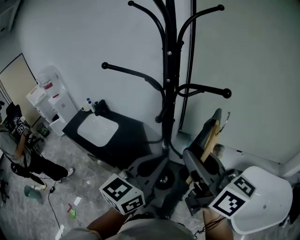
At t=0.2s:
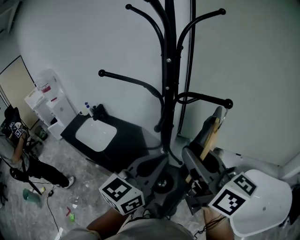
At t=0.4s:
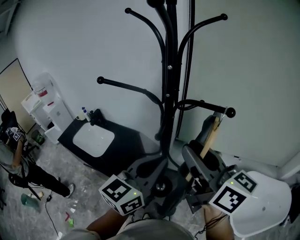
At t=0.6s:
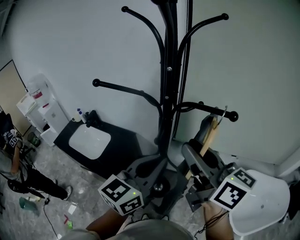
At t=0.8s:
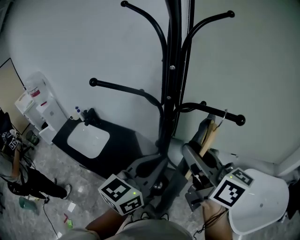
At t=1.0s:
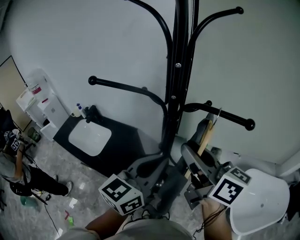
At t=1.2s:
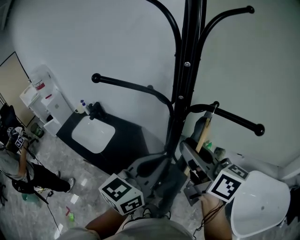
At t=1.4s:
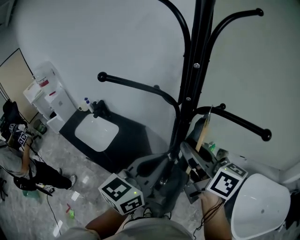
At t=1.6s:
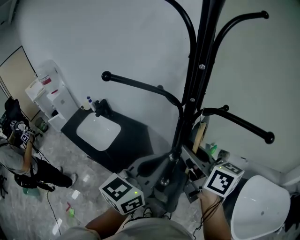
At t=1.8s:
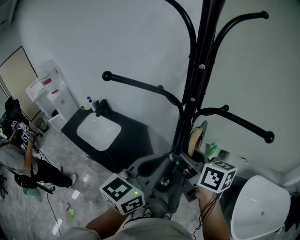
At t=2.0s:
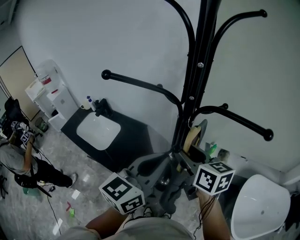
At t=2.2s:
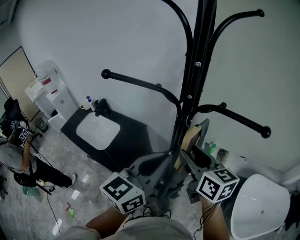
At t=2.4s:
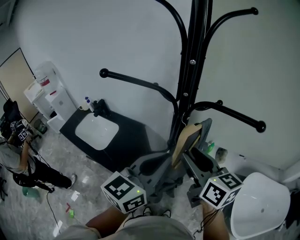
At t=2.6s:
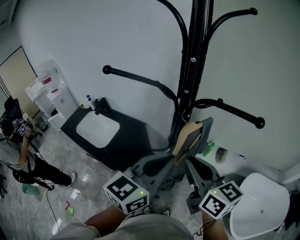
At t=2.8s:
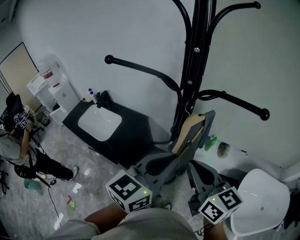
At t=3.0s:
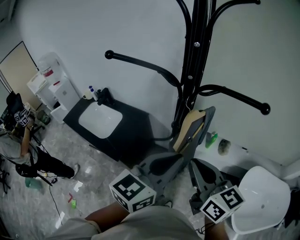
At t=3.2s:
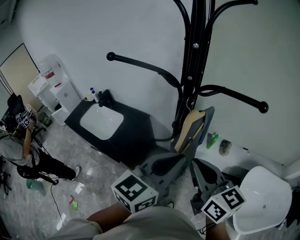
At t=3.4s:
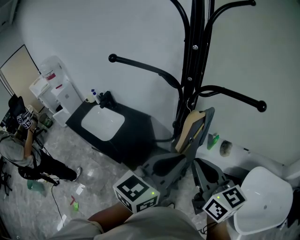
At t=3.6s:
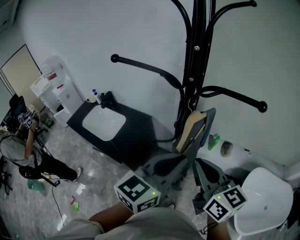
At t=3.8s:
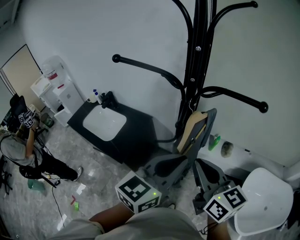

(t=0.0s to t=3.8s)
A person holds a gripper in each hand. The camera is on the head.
t=0.0s - t=1.2s: The two grippers go roughly 10 cm forward.
t=1.2s - t=2.6s: The right gripper shifts some 10 cm downward and backward.
t=2.6s - t=3.8s: The grippers make only small movements.

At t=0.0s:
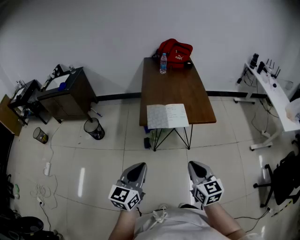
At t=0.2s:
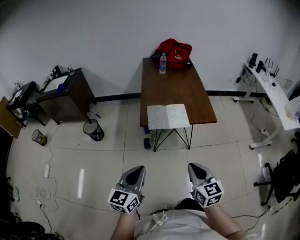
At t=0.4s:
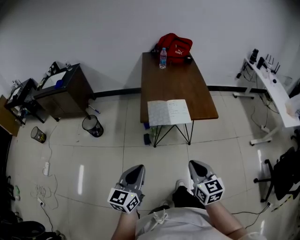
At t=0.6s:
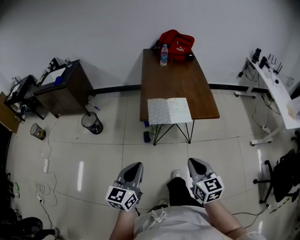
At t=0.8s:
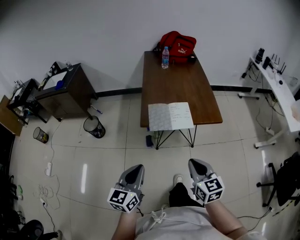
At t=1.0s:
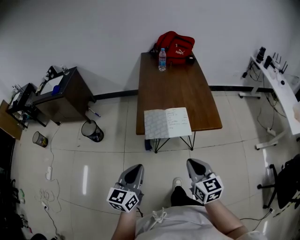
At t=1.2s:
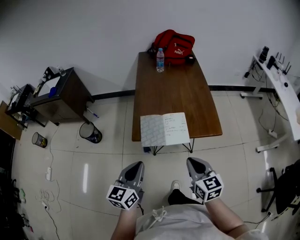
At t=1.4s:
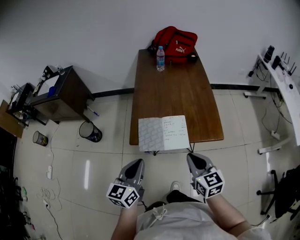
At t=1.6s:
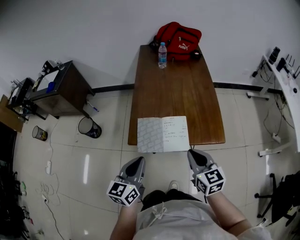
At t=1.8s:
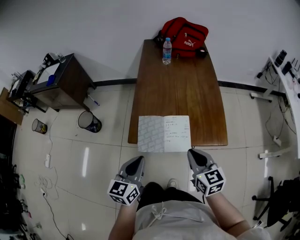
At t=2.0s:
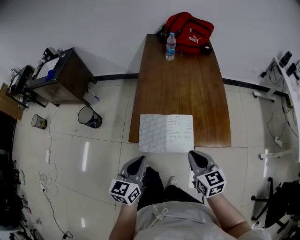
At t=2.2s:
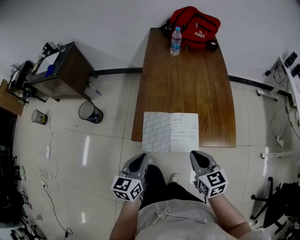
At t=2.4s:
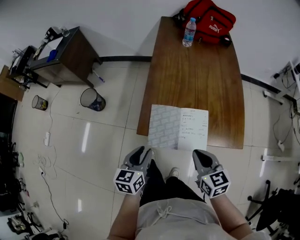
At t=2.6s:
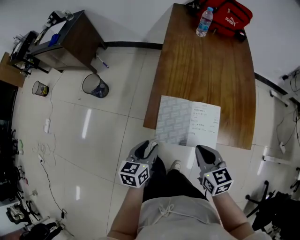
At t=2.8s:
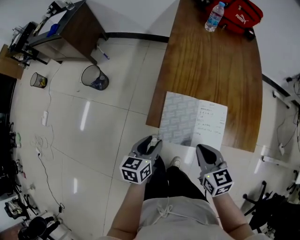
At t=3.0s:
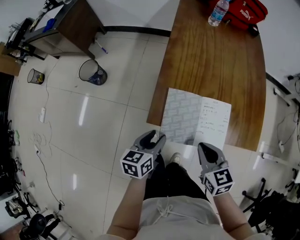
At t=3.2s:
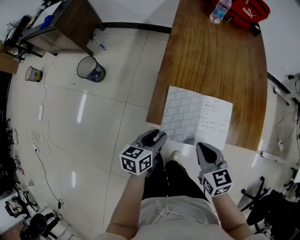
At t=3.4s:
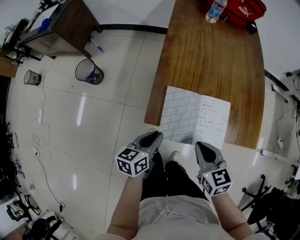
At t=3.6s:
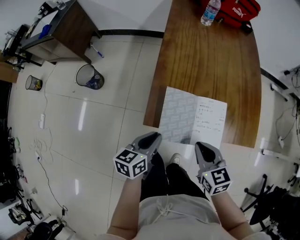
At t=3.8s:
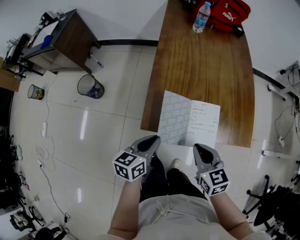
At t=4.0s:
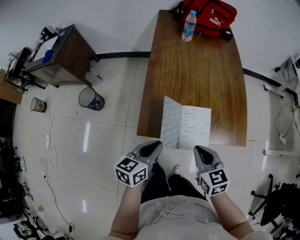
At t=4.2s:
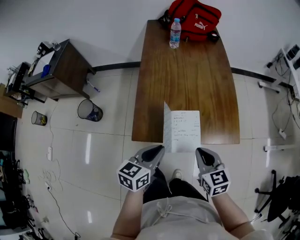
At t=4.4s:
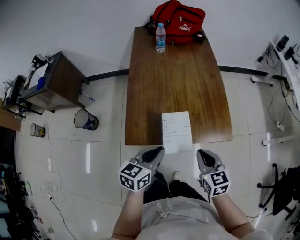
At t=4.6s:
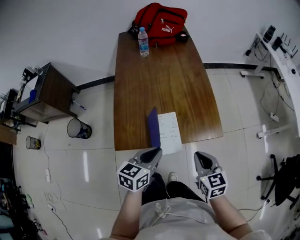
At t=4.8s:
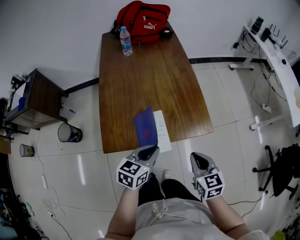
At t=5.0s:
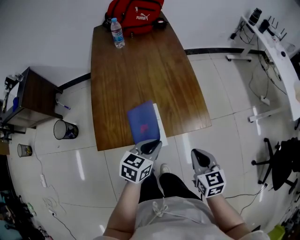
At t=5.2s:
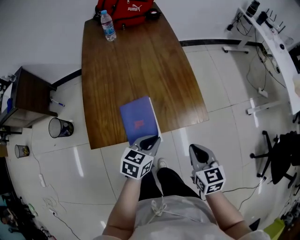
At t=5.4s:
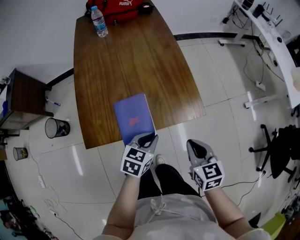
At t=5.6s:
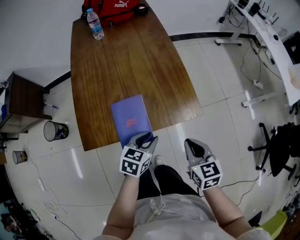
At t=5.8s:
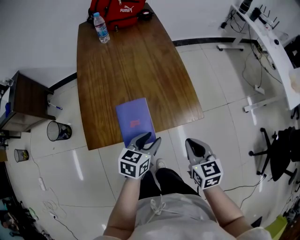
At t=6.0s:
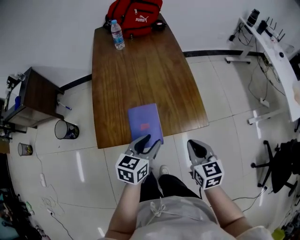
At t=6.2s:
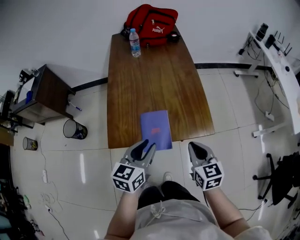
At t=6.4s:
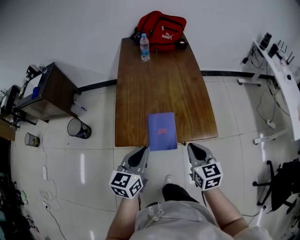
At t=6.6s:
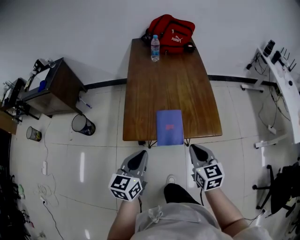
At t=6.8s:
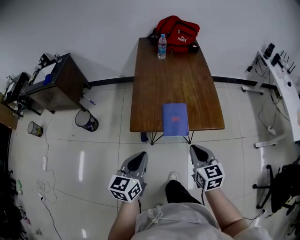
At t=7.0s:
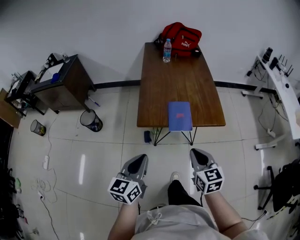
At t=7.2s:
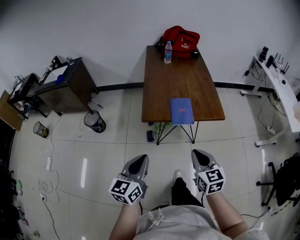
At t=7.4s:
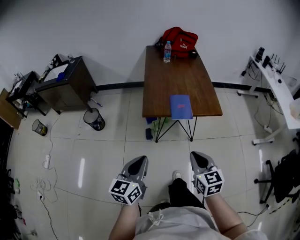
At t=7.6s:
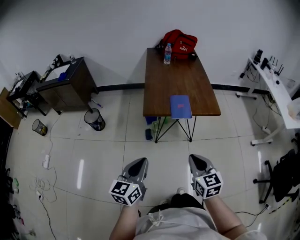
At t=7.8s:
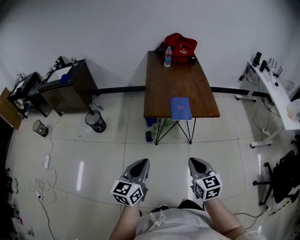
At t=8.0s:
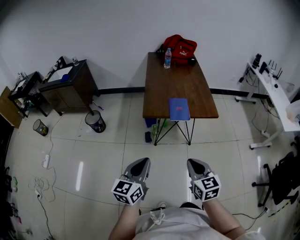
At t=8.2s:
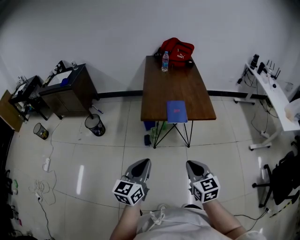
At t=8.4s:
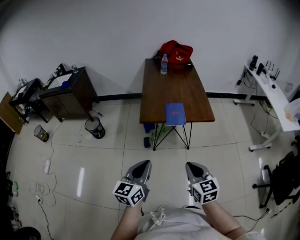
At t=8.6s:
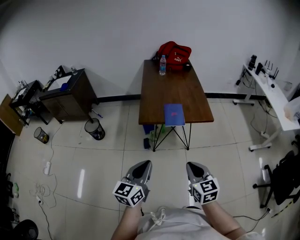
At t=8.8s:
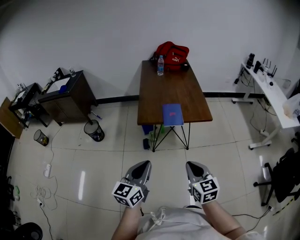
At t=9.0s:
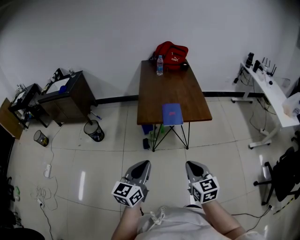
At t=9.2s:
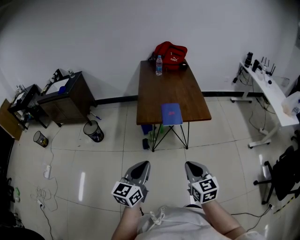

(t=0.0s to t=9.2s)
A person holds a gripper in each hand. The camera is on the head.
t=0.0s - t=1.6s: The two grippers go approximately 25 cm forward.
t=1.6s - t=3.0s: The left gripper travels downward and forward by roughly 20 cm, rotates about 30 degrees, and opens up, while the right gripper travels downward, to the left and forward by roughly 15 cm, and rotates some 20 degrees.
t=3.0s - t=4.6s: The left gripper heads to the right and upward, covering approximately 20 cm, swivels some 30 degrees, and closes, while the right gripper shifts some 15 cm to the right, and turns by roughly 20 degrees.
t=4.6s - t=6.2s: The right gripper reaches roughly 10 cm to the right, then returns. The left gripper moves approximately 10 cm downward and comes back, and opens its fingers.
t=6.2s - t=7.6s: The grippers both shift backward and to the left by approximately 40 cm. The left gripper closes its fingers.
t=7.6s - t=9.2s: The right gripper ends up some 5 cm from where it was. The left gripper is displaced to the right by approximately 5 cm.

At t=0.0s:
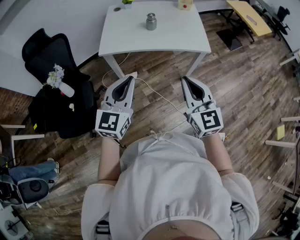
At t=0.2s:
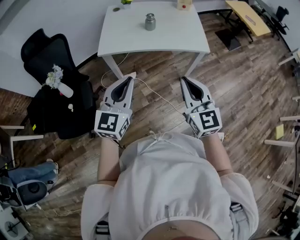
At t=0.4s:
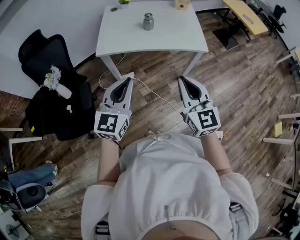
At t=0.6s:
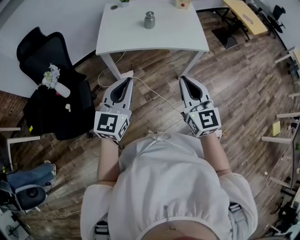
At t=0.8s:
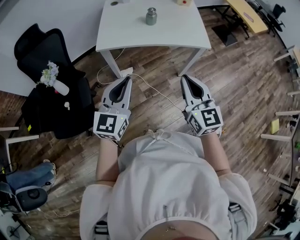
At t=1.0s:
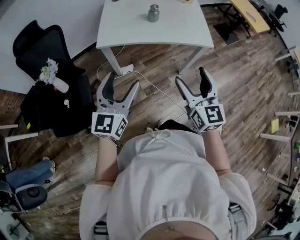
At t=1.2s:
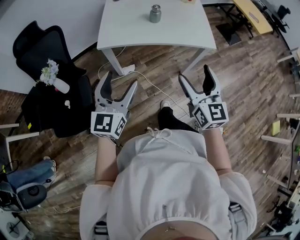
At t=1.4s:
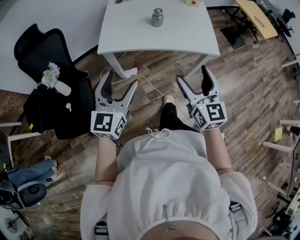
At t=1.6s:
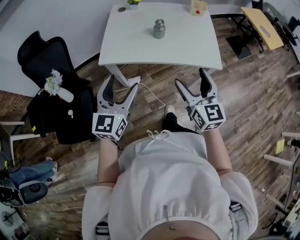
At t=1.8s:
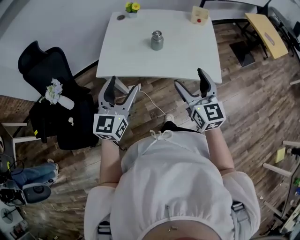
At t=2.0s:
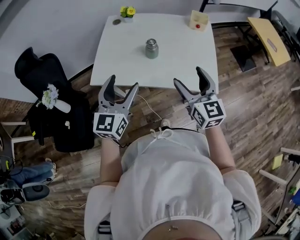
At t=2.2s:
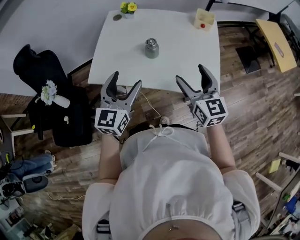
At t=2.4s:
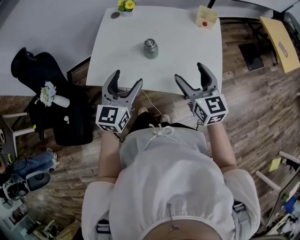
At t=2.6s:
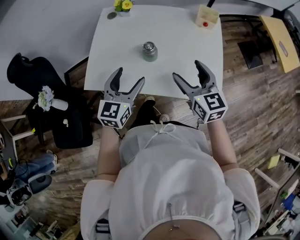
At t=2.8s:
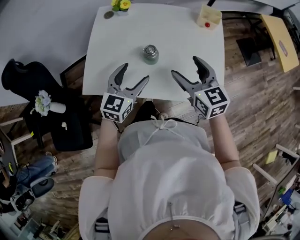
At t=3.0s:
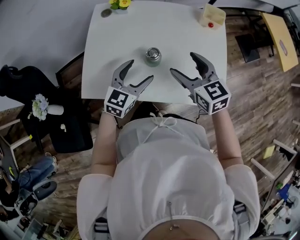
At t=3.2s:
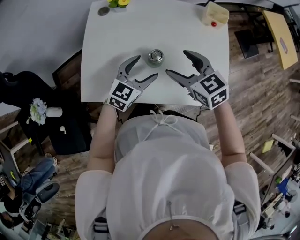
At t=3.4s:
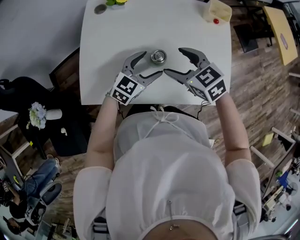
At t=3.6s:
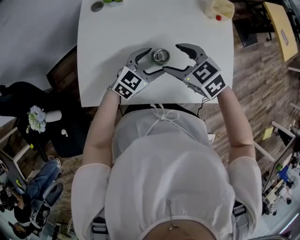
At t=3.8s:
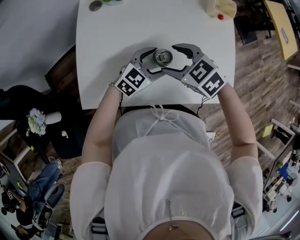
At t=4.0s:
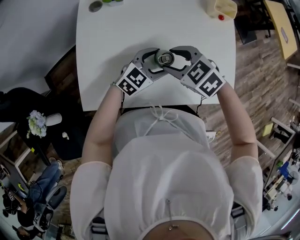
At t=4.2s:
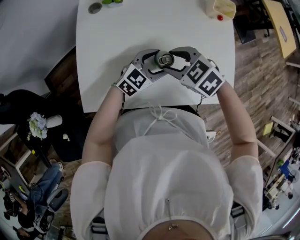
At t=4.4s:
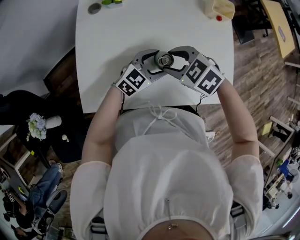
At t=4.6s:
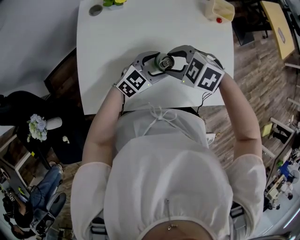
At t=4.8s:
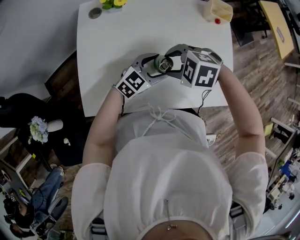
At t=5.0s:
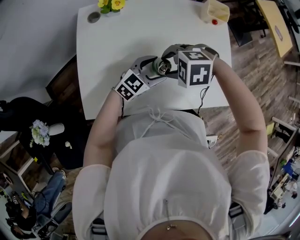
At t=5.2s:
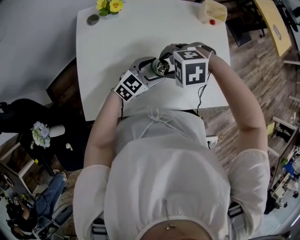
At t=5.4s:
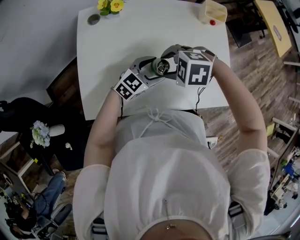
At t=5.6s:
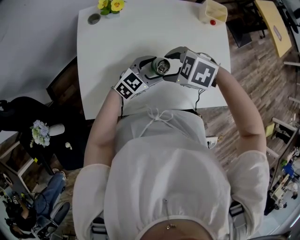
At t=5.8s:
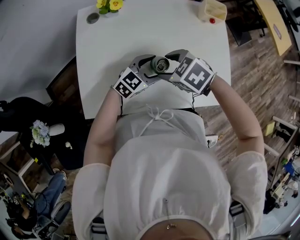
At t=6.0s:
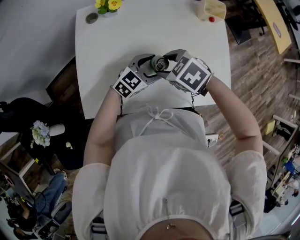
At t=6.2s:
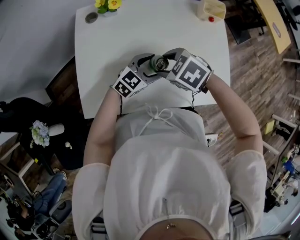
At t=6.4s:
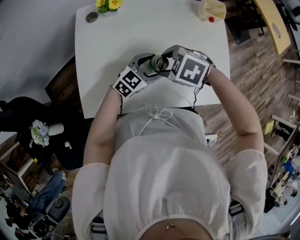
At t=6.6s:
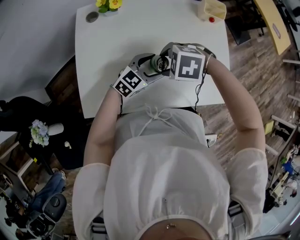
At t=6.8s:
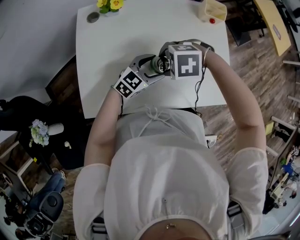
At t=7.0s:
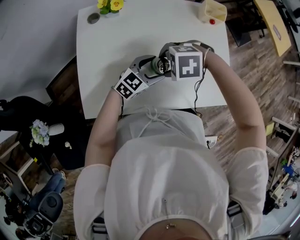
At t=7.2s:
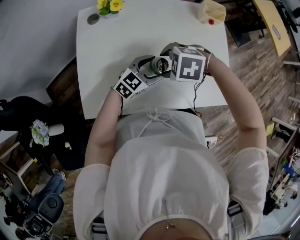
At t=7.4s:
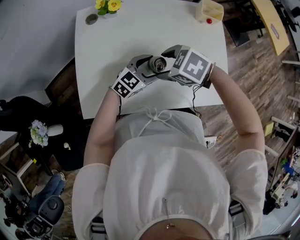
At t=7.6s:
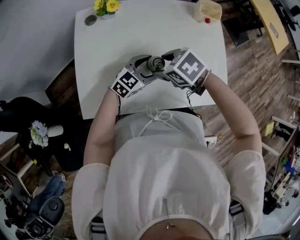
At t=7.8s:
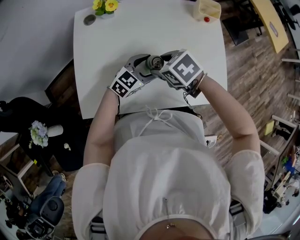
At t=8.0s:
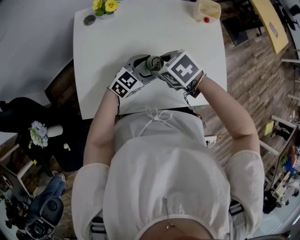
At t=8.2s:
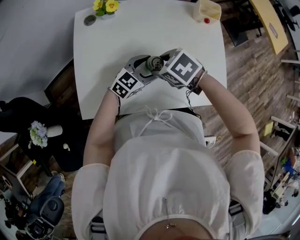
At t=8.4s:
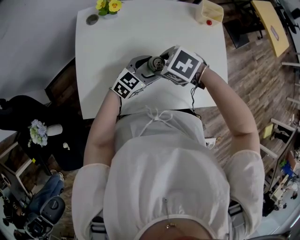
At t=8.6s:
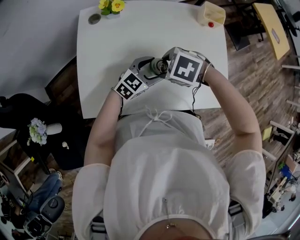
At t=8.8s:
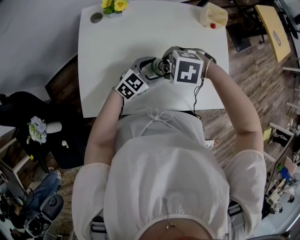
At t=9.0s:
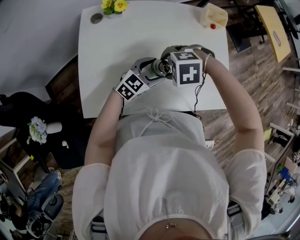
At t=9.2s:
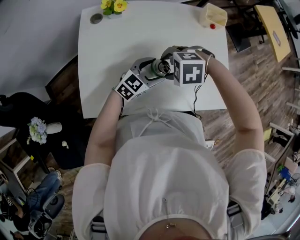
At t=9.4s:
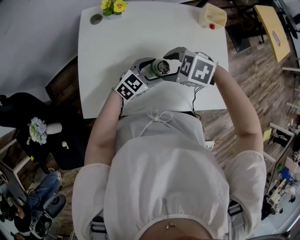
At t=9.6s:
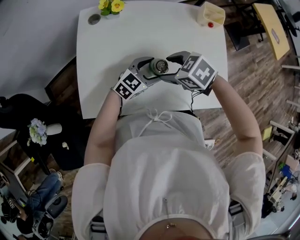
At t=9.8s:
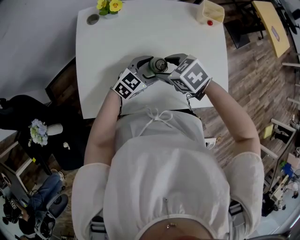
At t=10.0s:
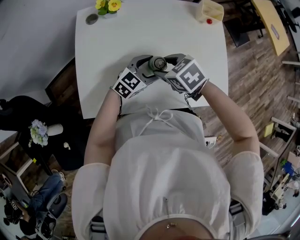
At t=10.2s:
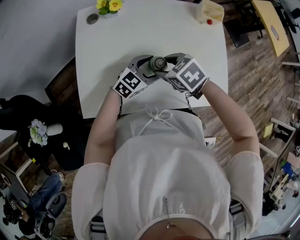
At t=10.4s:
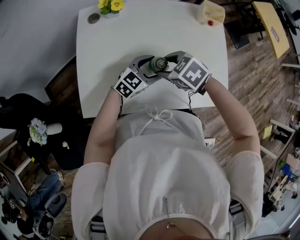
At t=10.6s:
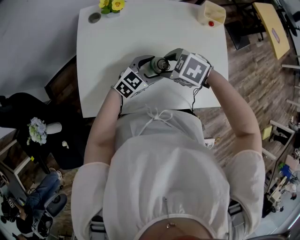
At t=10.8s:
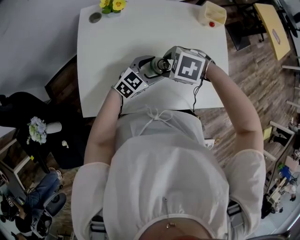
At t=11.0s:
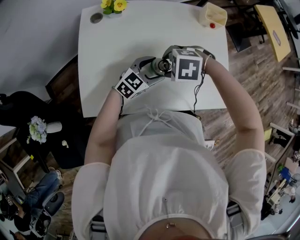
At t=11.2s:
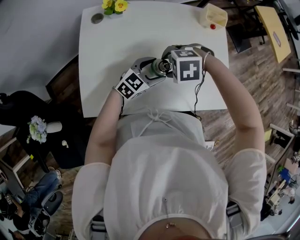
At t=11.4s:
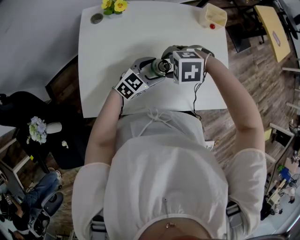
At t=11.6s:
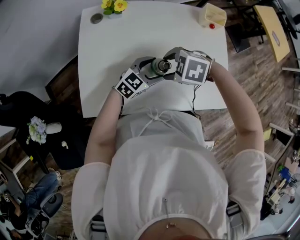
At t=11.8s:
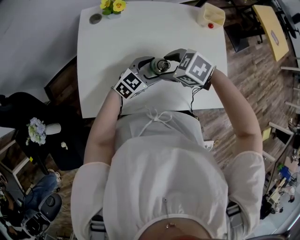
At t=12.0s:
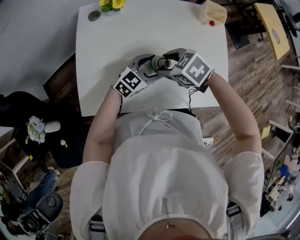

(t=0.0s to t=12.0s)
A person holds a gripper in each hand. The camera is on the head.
t=0.0s - t=1.6s: The grippers both shift forward by some 15 cm. The left gripper opens. Meanwhile the right gripper opens.
t=1.6s - t=3.0s: The left gripper is displaced forward, downward and to the right by some 40 cm, and changes its angle by some 20 degrees, while the right gripper moves forward, about 35 cm, and turns by about 30 degrees.
t=3.0s - t=4.4s: The left gripper shifts roughly 10 cm downward, and changes its angle by about 30 degrees, while the right gripper shifts by about 15 cm, and points its fingers roughly 30 degrees further downward.
t=7.6s - t=9.0s: The right gripper rotates around the line of its fingers by some 50 degrees, counterclockwise from behind.
t=9.0s - t=10.4s: The right gripper changes its angle by approximately 40 degrees.
